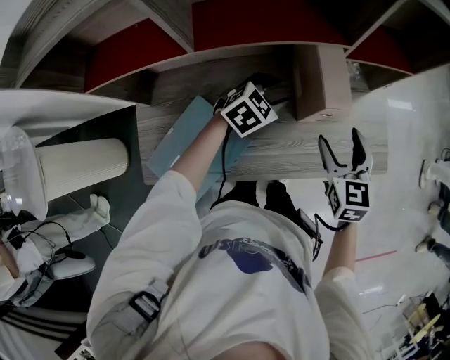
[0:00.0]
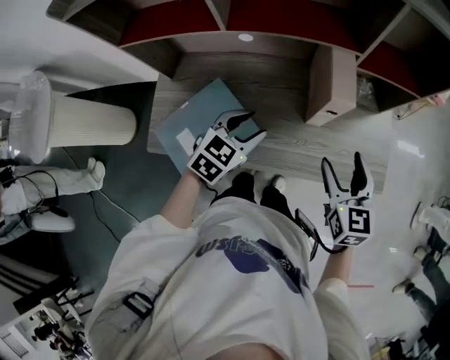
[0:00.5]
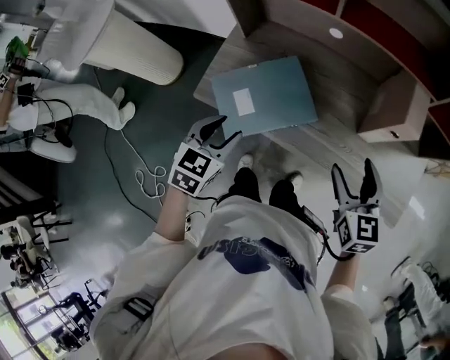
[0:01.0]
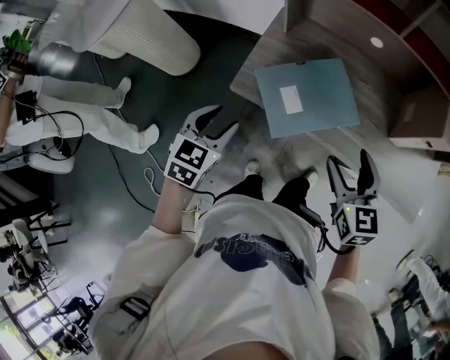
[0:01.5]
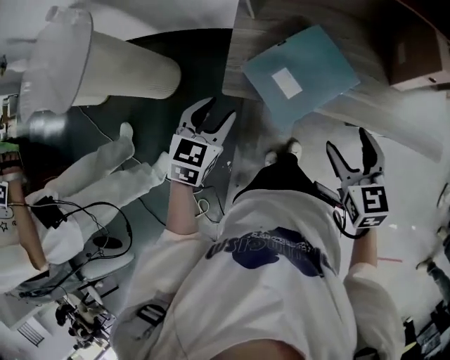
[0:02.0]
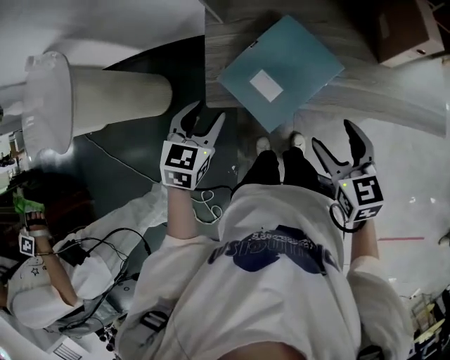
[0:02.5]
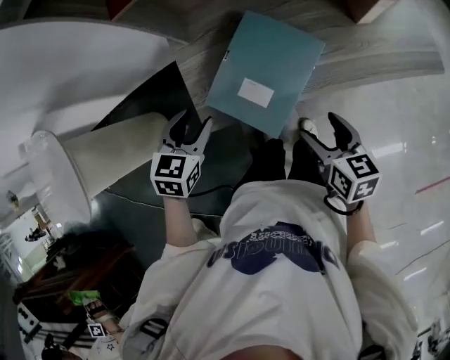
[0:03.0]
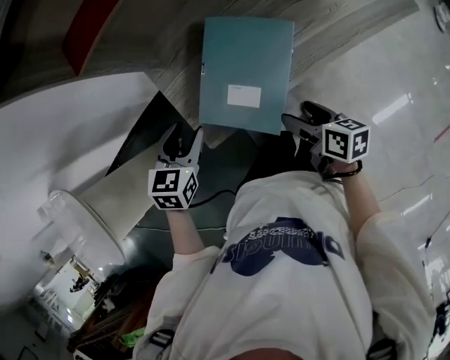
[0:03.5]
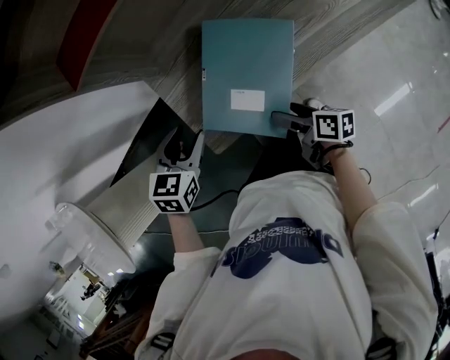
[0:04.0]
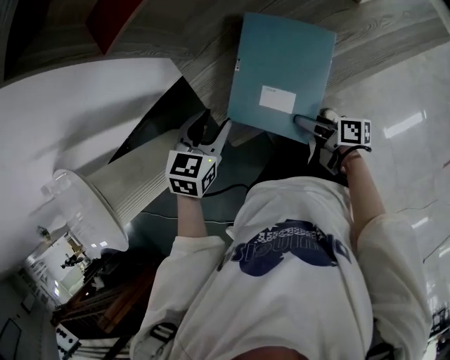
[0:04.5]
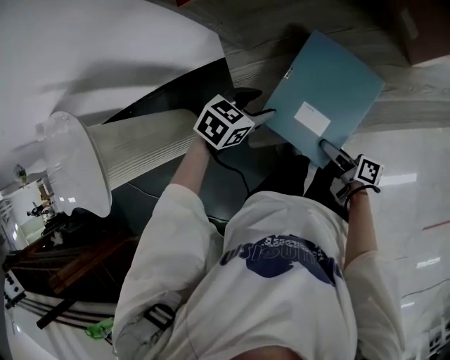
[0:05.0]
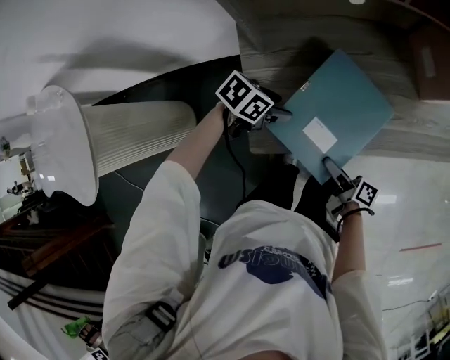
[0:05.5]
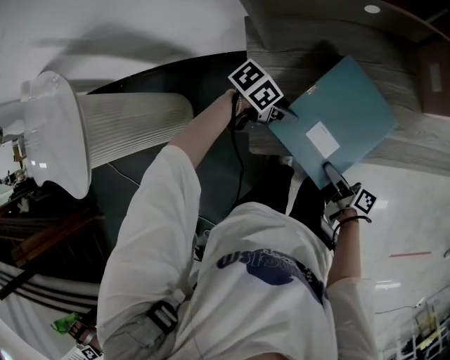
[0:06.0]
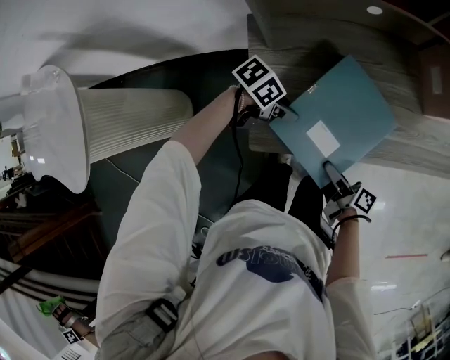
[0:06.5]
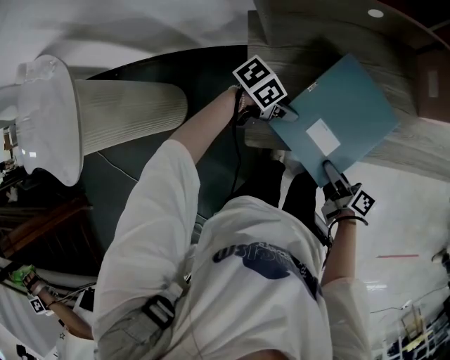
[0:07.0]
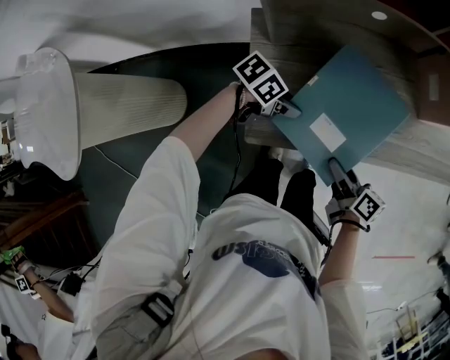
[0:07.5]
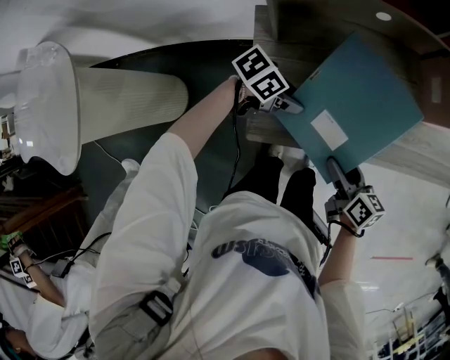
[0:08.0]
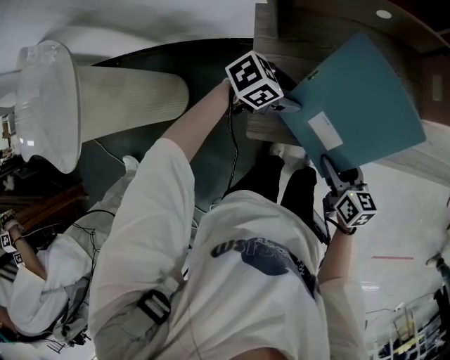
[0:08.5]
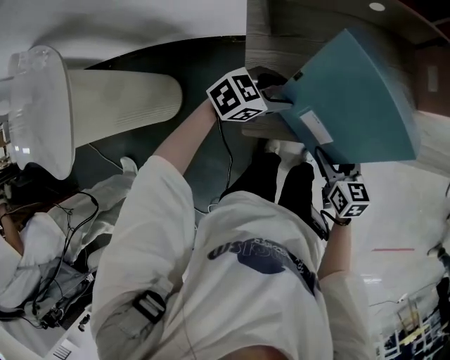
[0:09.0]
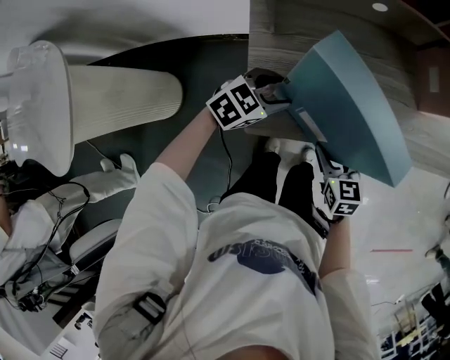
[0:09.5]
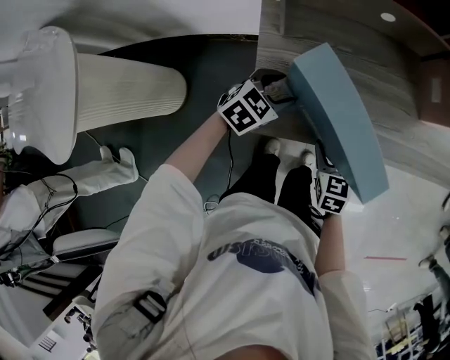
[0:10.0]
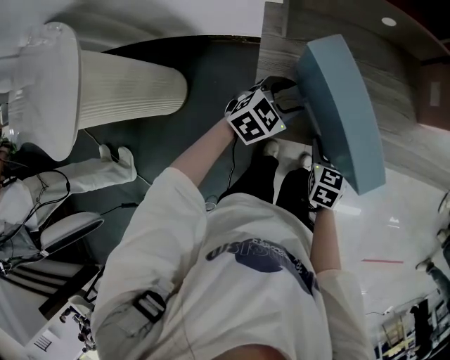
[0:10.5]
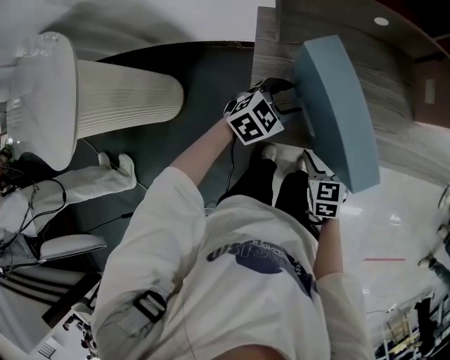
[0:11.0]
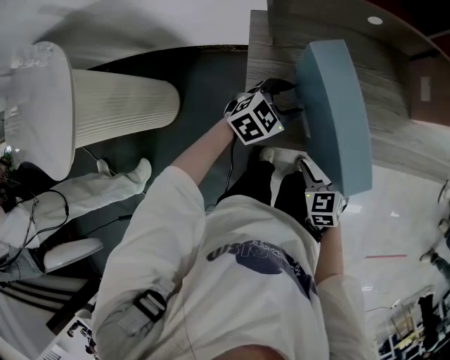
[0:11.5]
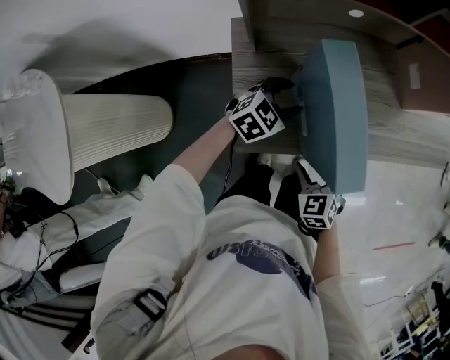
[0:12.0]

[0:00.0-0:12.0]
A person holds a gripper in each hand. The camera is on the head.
0:00.0 to 0:02.0: The right gripper ends up approximately 40 cm from where it was, and rotates about 30 degrees; the left gripper moves some 60 cm, and turns by roughly 50 degrees.
0:02.0 to 0:04.0: The left gripper shifts approximately 15 cm forward and downward, and swivels roughly 30 degrees. The right gripper moves downward and to the left, about 20 cm, and rolls clockwise, seen from behind, by some 70 degrees.
0:04.0 to 0:06.0: The left gripper moves downward, roughly 10 cm, and swivels approximately 50 degrees.
0:06.0 to 0:08.0: The right gripper heads upward, covering about 5 cm, and rotates roughly 40 degrees.
0:08.0 to 0:10.0: The left gripper rotates some 40 degrees. Meanwhile the right gripper shifts by some 5 cm, and changes its angle by approximately 50 degrees.
0:10.0 to 0:12.0: The left gripper is displaced to the right and forward by roughly 10 cm; the right gripper rotates some 20 degrees.

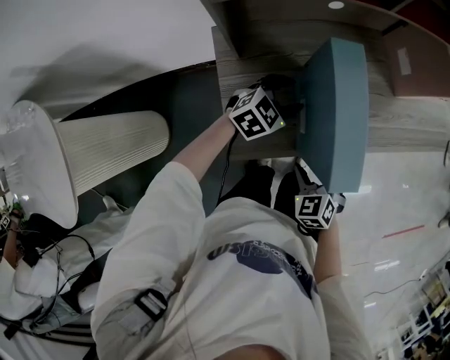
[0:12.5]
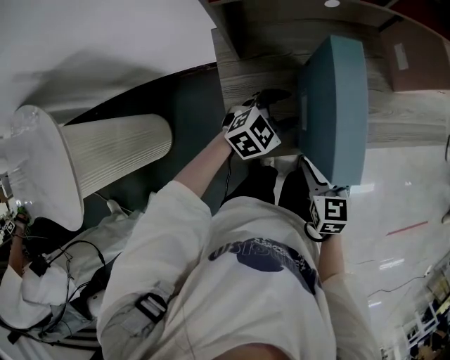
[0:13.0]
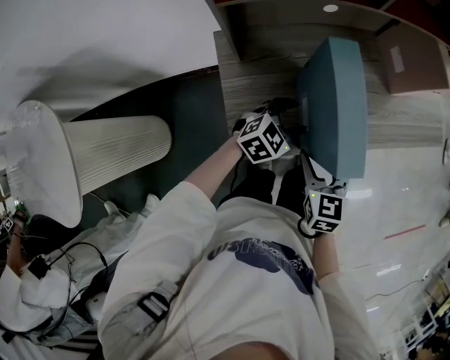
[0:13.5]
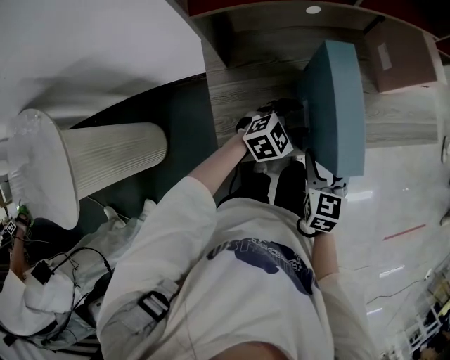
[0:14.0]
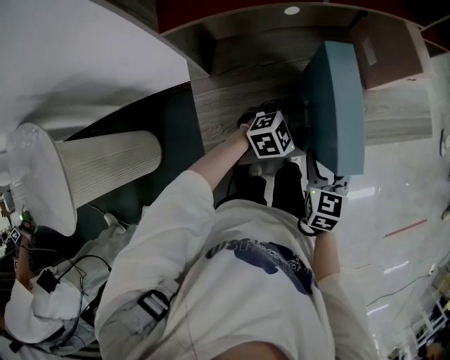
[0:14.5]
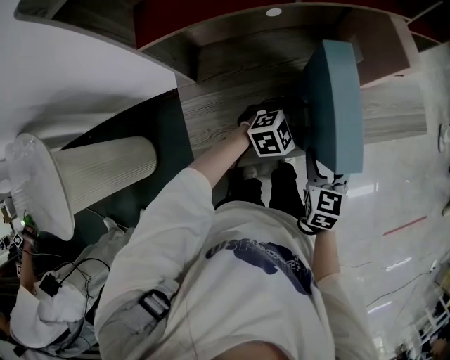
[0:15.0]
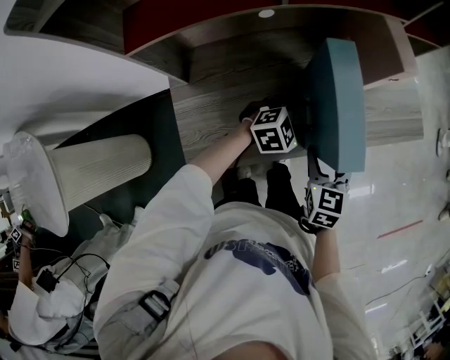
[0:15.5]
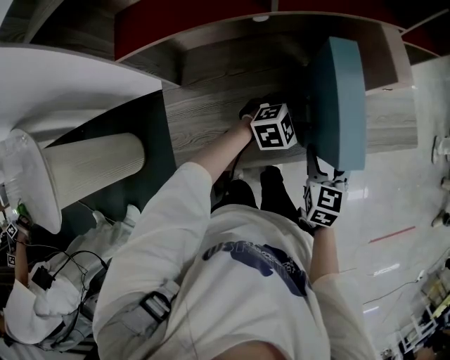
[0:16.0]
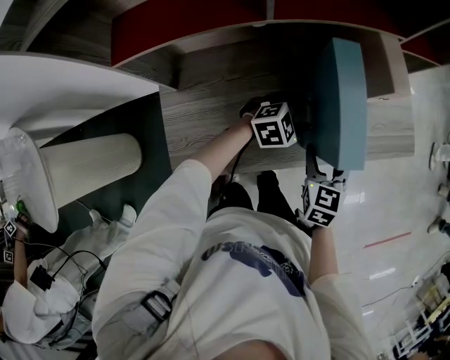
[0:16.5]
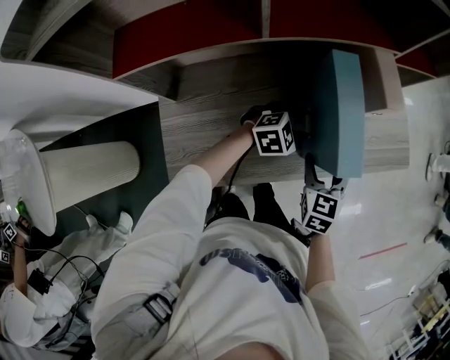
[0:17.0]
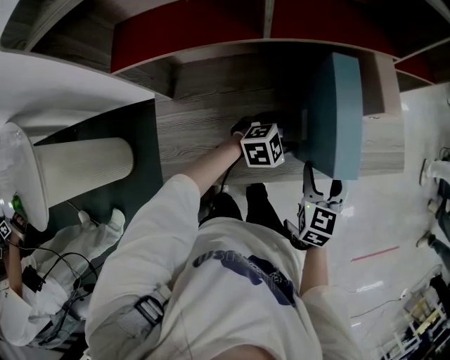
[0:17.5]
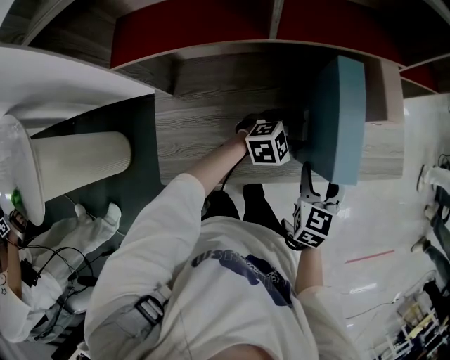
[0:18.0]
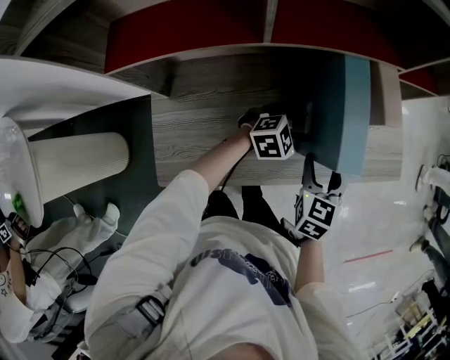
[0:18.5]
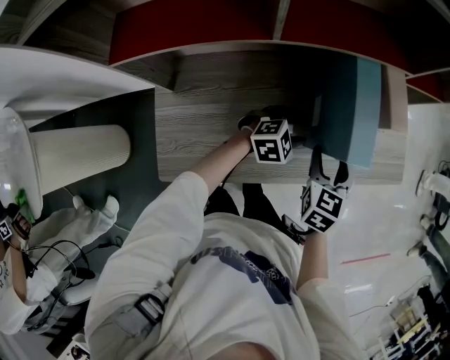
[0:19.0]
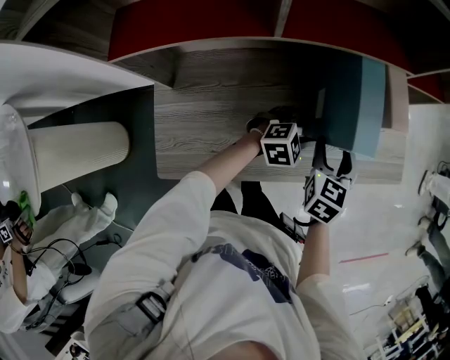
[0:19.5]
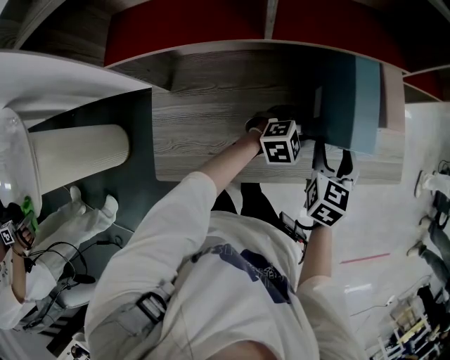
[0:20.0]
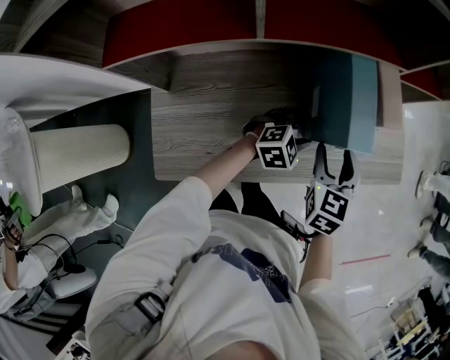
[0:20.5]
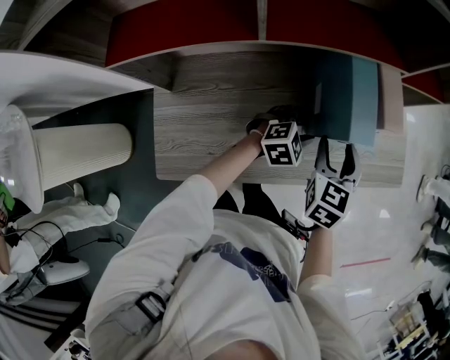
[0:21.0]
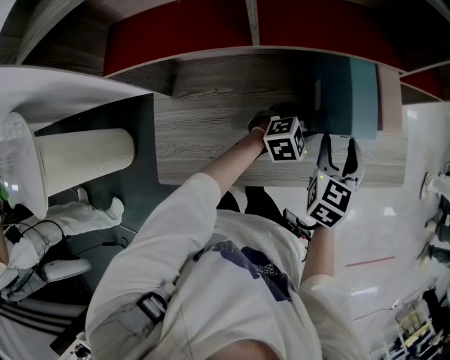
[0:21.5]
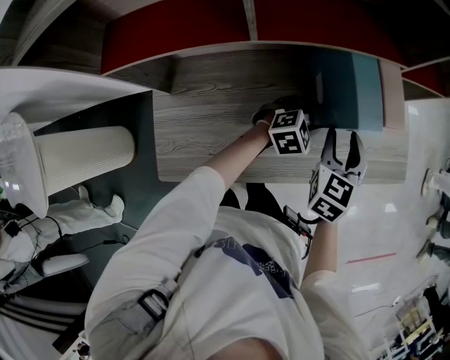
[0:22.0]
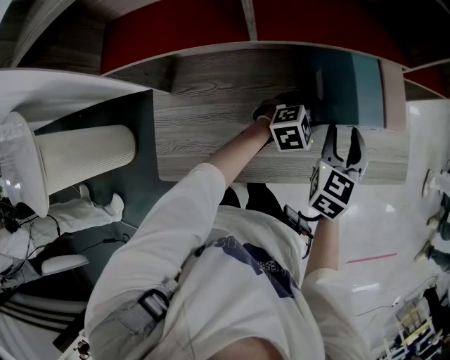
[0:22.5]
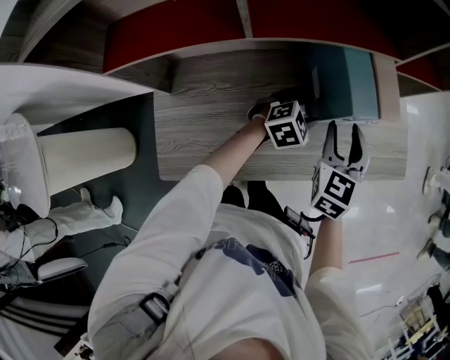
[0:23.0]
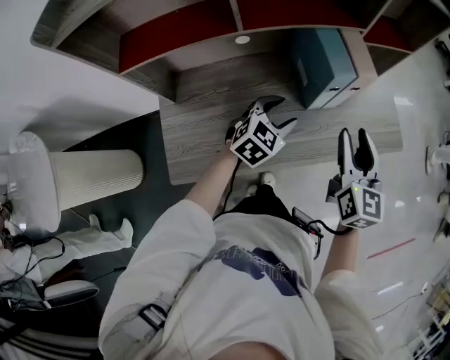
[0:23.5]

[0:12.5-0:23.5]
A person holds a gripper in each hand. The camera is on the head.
0:12.5 to 0:14.5: The right gripper is displaced forward, to the right and upward by roughly 15 cm, and rotates roughly 40 degrees. The left gripper shifts roughly 15 cm to the right.
0:14.5 to 0:16.0: Both grippers travel together forward and to the right, approximately 15 cm.
0:16.0 to 0:18.0: The grippers move only a little.
0:18.0 to 0:20.0: The right gripper travels forward by some 10 cm.
0:20.0 to 0:21.5: The grippers move only a little.
0:21.5 to 0:23.5: The right gripper moves upward, to the right and backward, approximately 15 cm, and turns by some 30 degrees, while the left gripper shifts about 10 cm backward and upward.

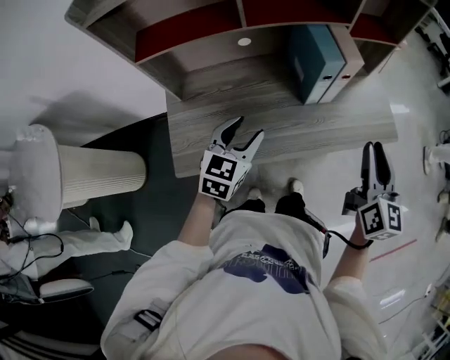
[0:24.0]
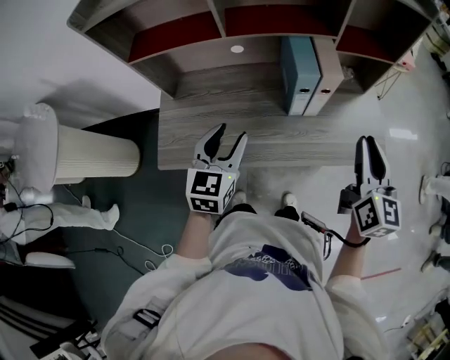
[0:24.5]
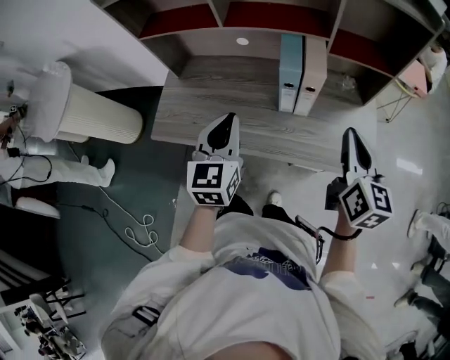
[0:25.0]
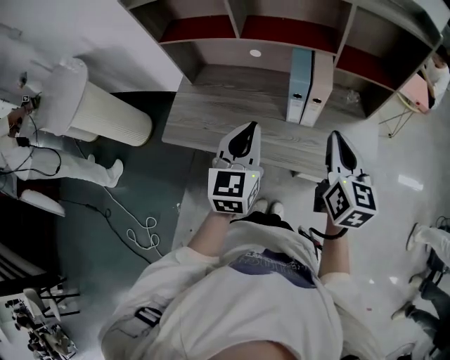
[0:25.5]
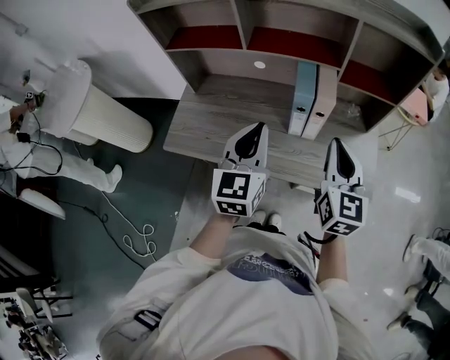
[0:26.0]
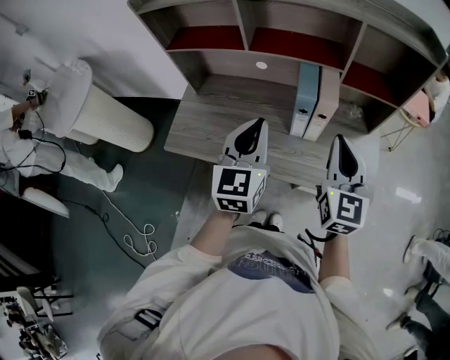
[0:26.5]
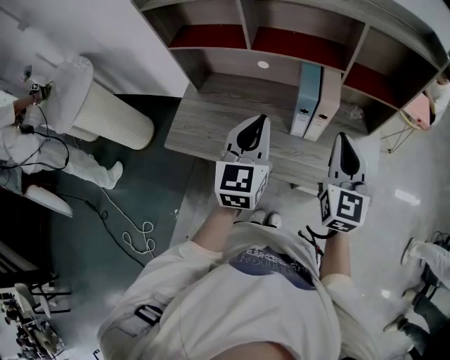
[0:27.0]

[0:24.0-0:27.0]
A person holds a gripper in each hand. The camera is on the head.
0:24.0 to 0:25.5: The right gripper shifts by approximately 10 cm, and swivels roughly 30 degrees. The left gripper moves approximately 20 cm, turns by some 40 degrees, and closes.
0:25.5 to 0:27.0: The left gripper ends up approximately 5 cm from where it was. The right gripper turns by approximately 20 degrees.
